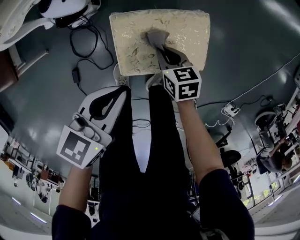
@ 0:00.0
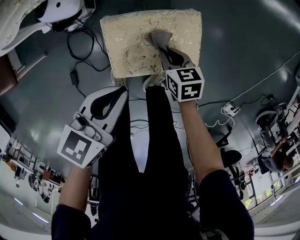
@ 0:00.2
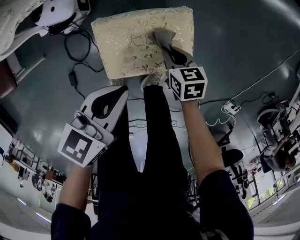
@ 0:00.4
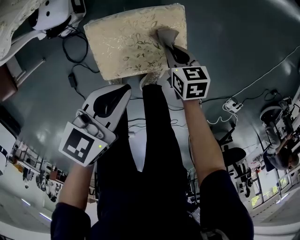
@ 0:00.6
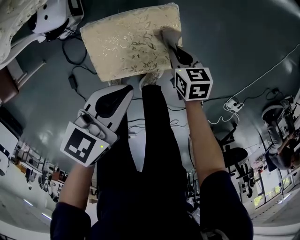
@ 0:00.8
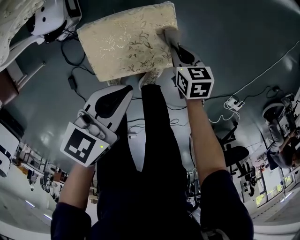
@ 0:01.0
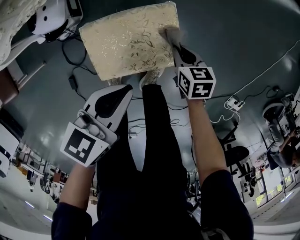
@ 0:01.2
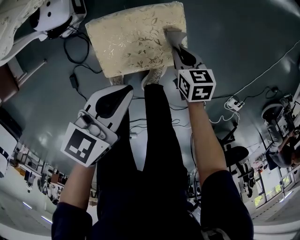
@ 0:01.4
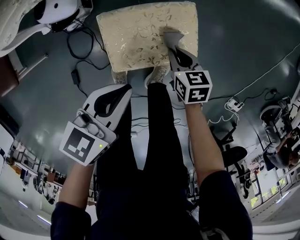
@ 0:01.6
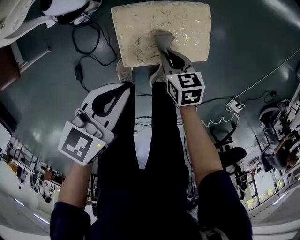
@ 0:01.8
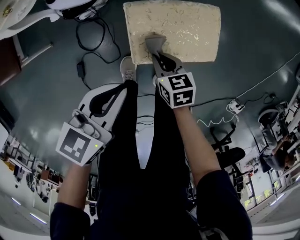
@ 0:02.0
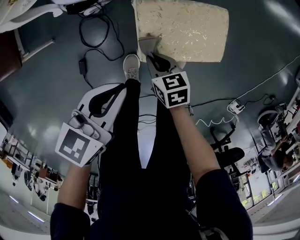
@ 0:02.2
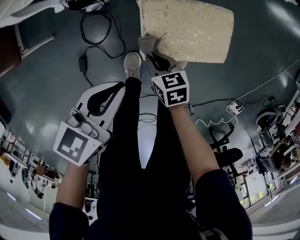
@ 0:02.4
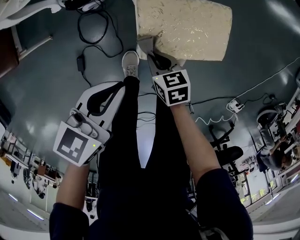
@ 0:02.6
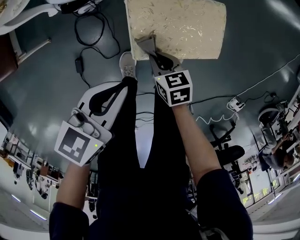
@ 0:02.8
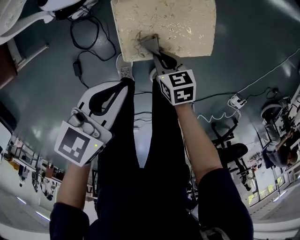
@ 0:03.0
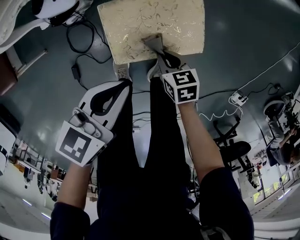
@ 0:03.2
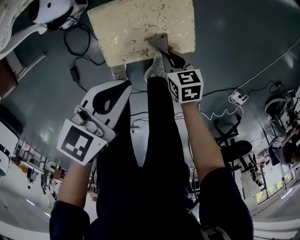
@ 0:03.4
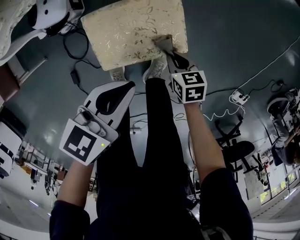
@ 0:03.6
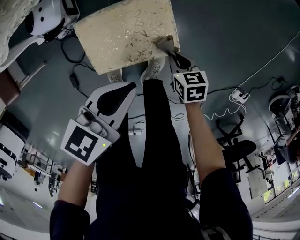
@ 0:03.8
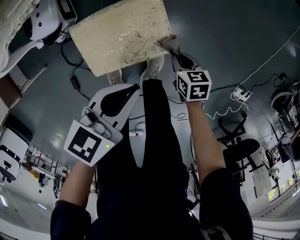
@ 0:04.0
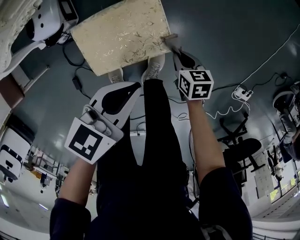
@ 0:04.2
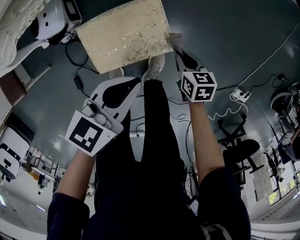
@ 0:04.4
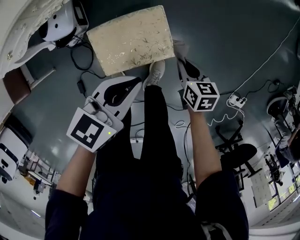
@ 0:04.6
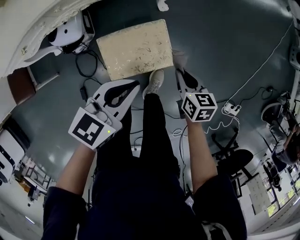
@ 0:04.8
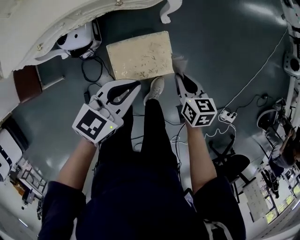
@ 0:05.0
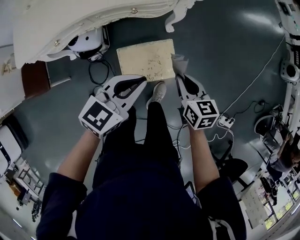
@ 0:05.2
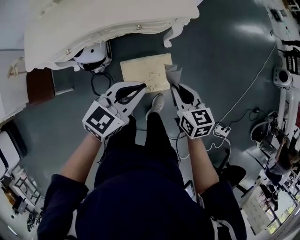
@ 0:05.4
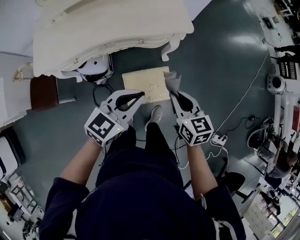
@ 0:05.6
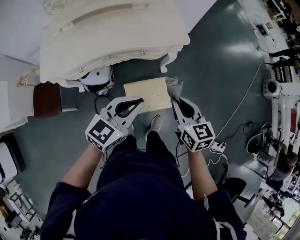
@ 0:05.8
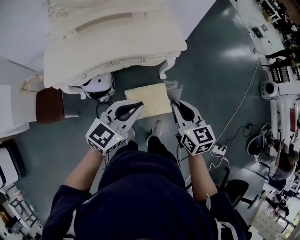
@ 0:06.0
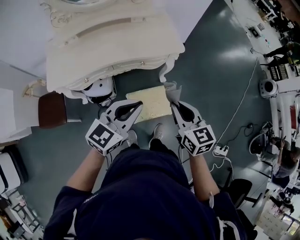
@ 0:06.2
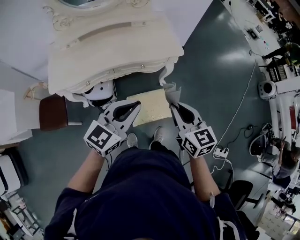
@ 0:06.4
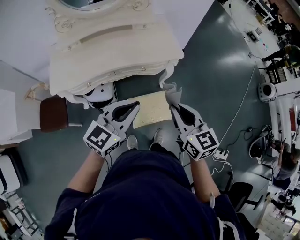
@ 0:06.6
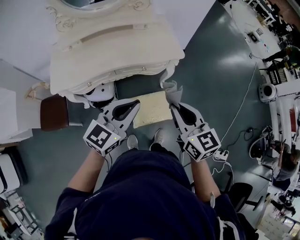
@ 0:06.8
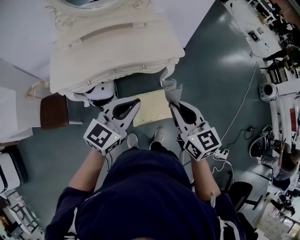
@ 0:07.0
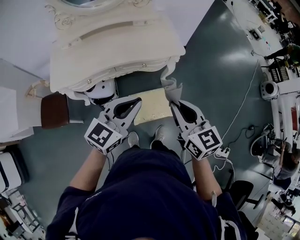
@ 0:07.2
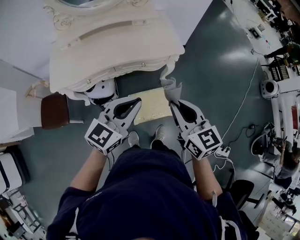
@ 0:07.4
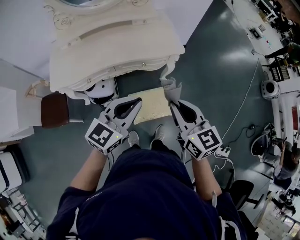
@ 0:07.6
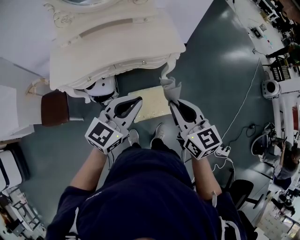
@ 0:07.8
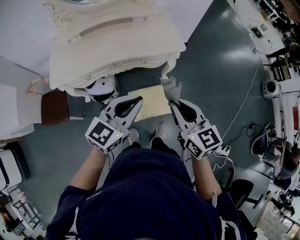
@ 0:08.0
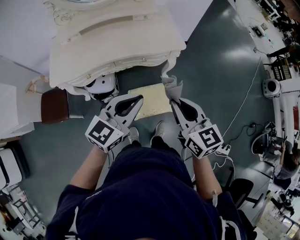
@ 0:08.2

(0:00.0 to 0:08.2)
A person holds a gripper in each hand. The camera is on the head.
0:00.0 - 0:01.6: The right gripper goes roughly 10 cm to the right; the left gripper goes some 5 cm to the right.
0:01.6 - 0:03.2: The right gripper is displaced backward by approximately 5 cm, and reaches about 20 cm to the left, then returns, while the left gripper moves some 15 cm to the left and comes back.
0:03.2 - 0:05.0: The left gripper goes about 20 cm upward and to the right, while the right gripper moves upward and to the right, about 30 cm, and rotates about 20 degrees.
0:05.0 - 0:06.6: Both grippers travel together upward, approximately 35 cm. The right gripper changes its angle by about 30 degrees. Meanwhile the left gripper rotates about 30 degrees.
0:06.6 - 0:08.2: The grippers stay close to where they were, moving slightly.

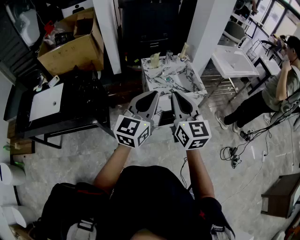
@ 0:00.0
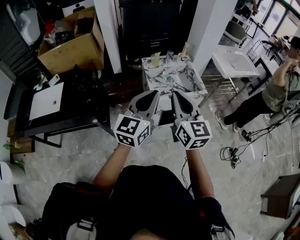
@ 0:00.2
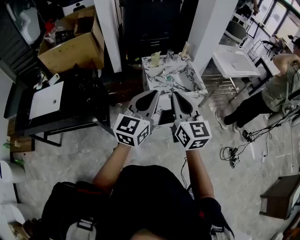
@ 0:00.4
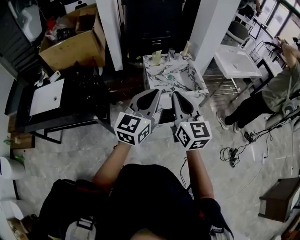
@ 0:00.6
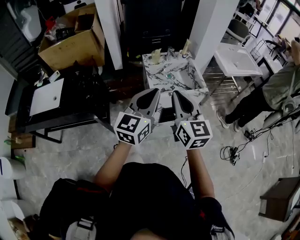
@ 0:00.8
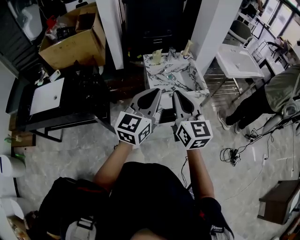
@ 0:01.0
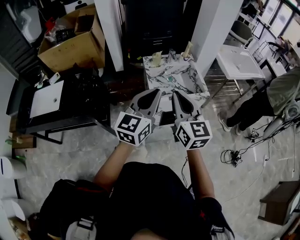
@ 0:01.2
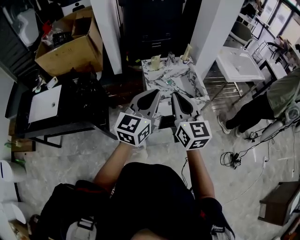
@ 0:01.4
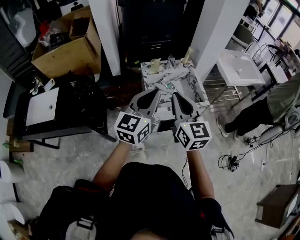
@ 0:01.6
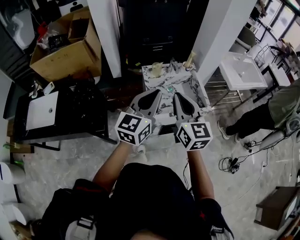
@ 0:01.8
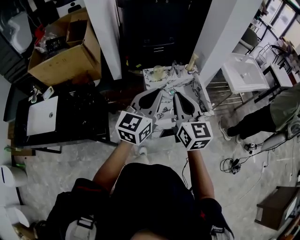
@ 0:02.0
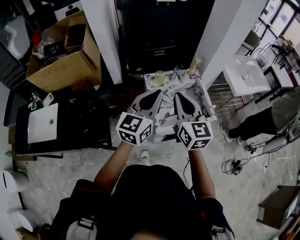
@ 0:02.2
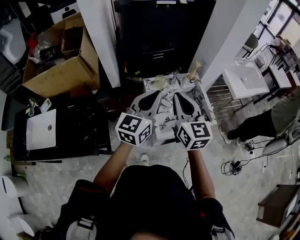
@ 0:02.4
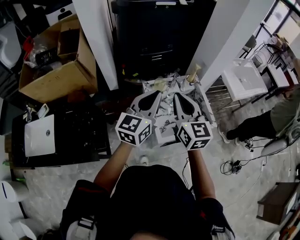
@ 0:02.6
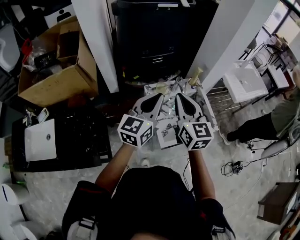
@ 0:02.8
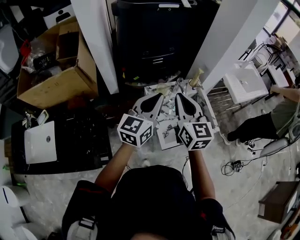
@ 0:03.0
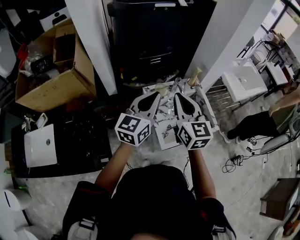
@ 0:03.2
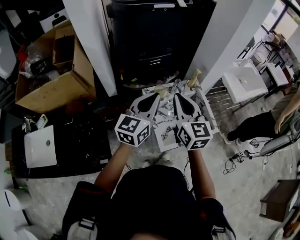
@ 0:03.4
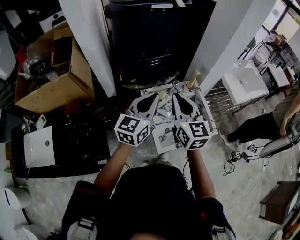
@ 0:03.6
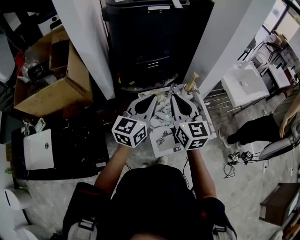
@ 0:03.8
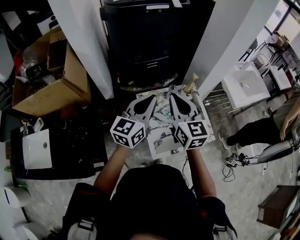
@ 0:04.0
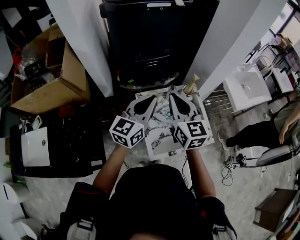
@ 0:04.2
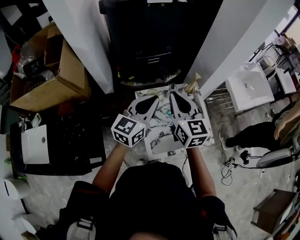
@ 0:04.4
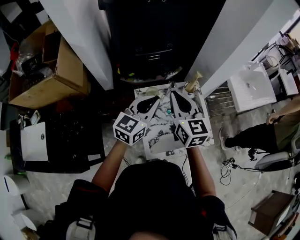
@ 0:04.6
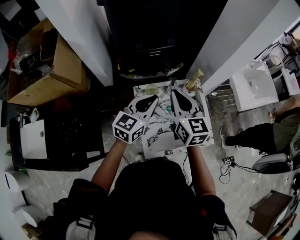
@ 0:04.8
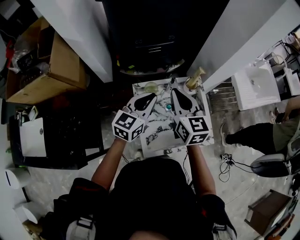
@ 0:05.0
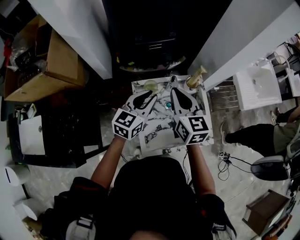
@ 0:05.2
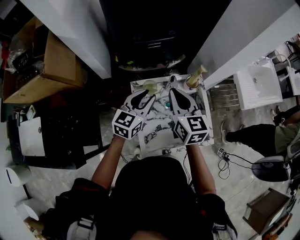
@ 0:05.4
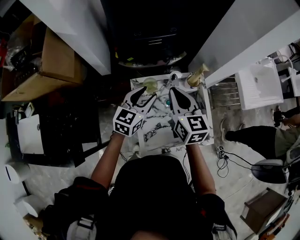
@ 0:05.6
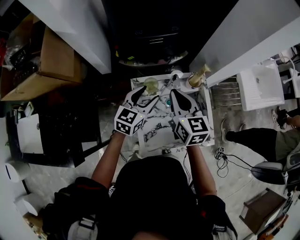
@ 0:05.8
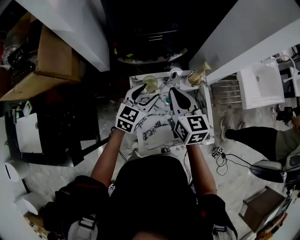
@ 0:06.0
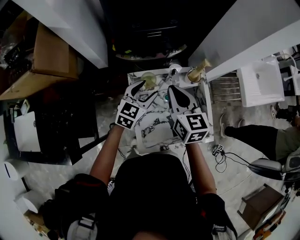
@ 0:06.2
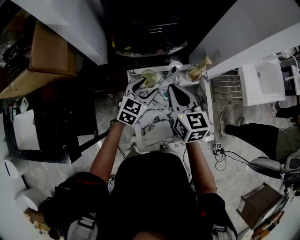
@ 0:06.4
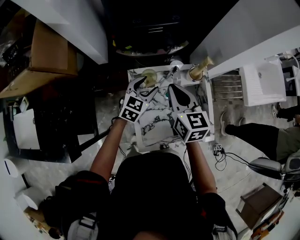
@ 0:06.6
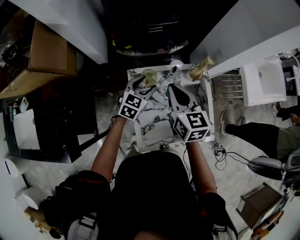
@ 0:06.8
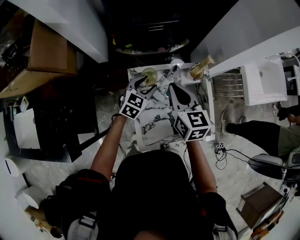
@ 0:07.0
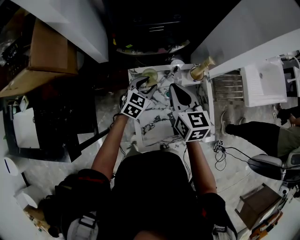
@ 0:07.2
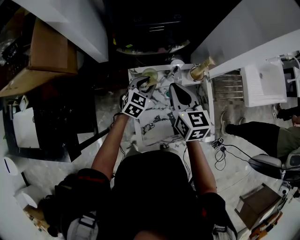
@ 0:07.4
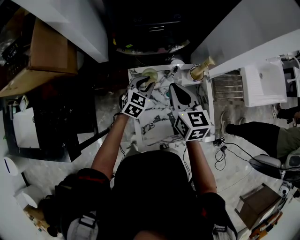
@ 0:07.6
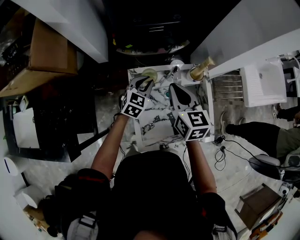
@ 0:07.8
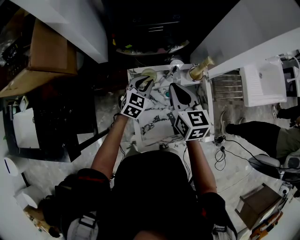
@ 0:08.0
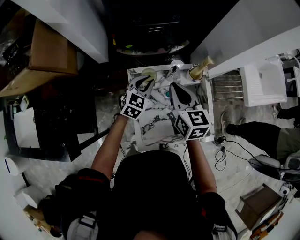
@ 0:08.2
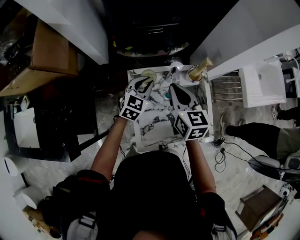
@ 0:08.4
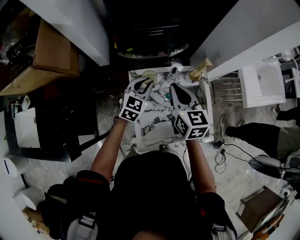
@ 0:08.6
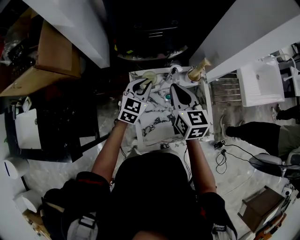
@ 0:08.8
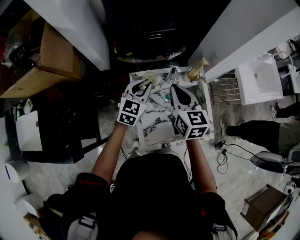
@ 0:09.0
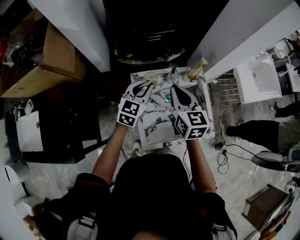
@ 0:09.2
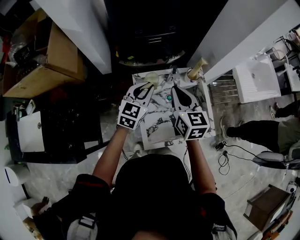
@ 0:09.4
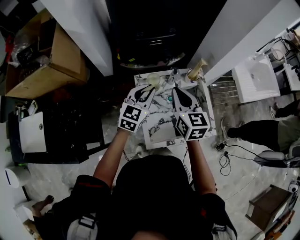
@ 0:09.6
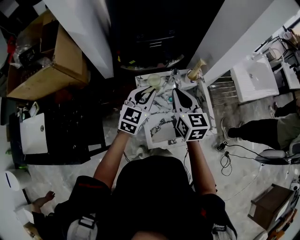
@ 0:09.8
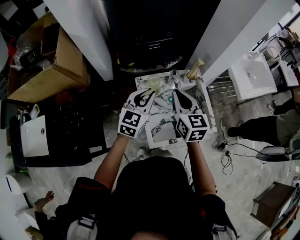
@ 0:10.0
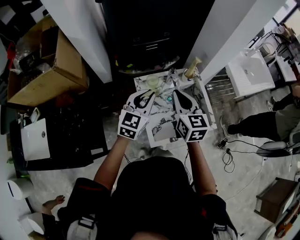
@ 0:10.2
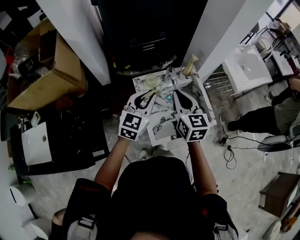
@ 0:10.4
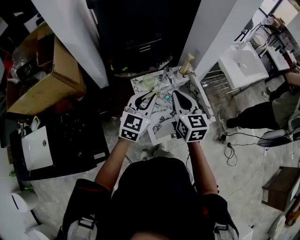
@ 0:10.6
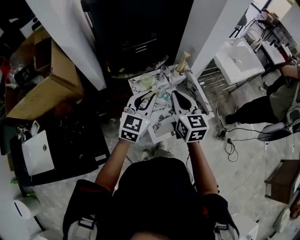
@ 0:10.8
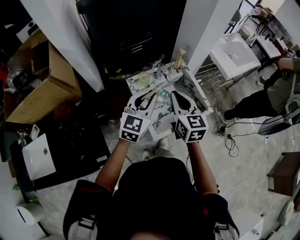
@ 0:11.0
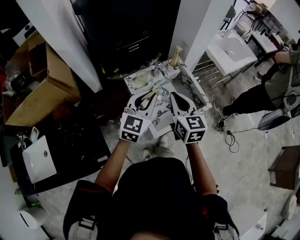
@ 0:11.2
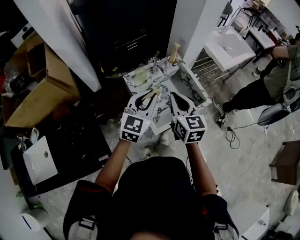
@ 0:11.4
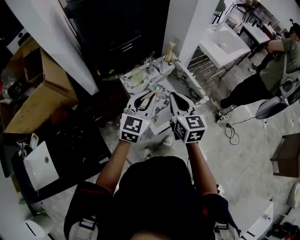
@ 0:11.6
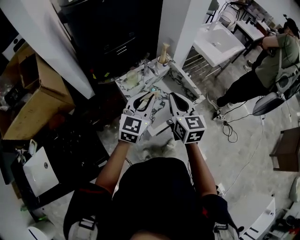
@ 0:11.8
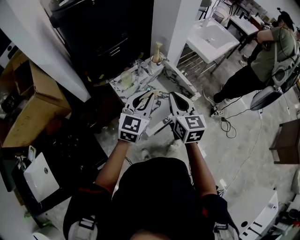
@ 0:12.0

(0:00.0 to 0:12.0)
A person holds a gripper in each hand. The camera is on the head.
0:00.0 - 0:01.6: Both grippers move forward, about 10 cm.
0:01.6 - 0:03.0: Both grippers travel together forward and to the left, some 25 cm.
0:03.0 - 0:04.4: The right gripper goes roughly 10 cm forward, while the left gripper heads forward and to the right, covering roughly 10 cm.
0:04.4 - 0:06.0: The two grippers go roughly 15 cm downward and forward. The left gripper opens up.
0:06.0 - 0:07.6: The left gripper heads downward, covering approximately 10 cm, and closes its fingers.
0:07.6 - 0:09.0: The left gripper goes some 10 cm upward.
0:09.0 - 0:10.4: Both grippers move backward and upward, approximately 15 cm.
0:10.4 - 0:12.0: The left gripper heads to the right and backward, covering about 10 cm. Meanwhile the right gripper travels backward and to the right by roughly 10 cm.

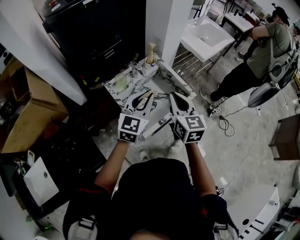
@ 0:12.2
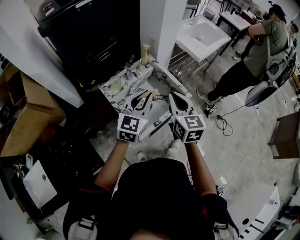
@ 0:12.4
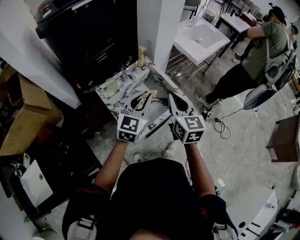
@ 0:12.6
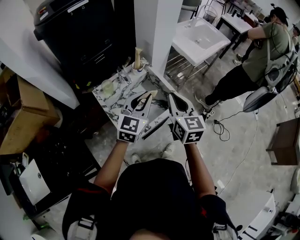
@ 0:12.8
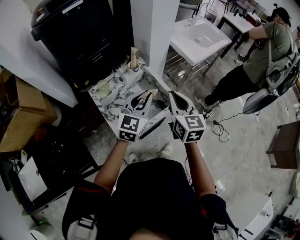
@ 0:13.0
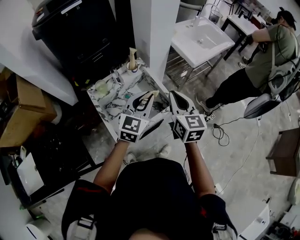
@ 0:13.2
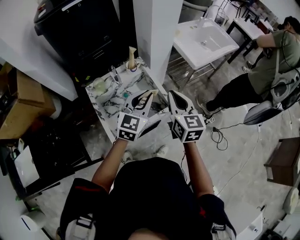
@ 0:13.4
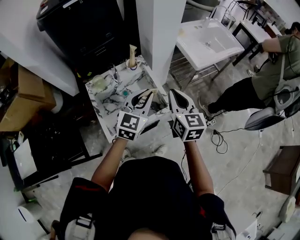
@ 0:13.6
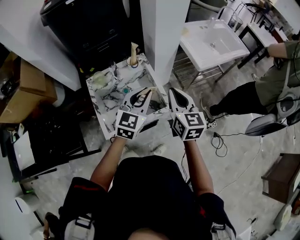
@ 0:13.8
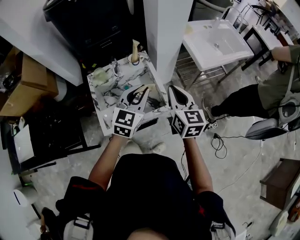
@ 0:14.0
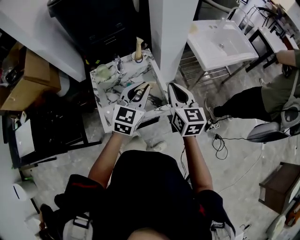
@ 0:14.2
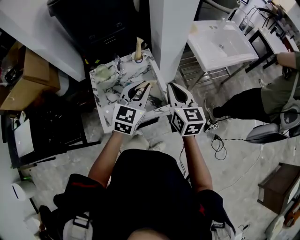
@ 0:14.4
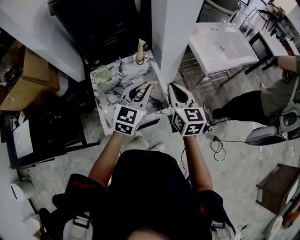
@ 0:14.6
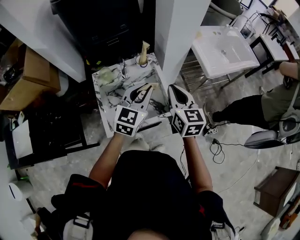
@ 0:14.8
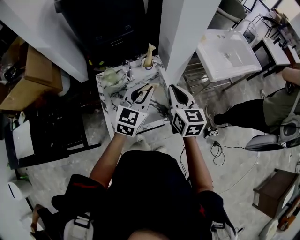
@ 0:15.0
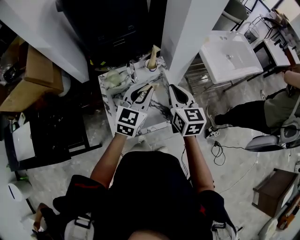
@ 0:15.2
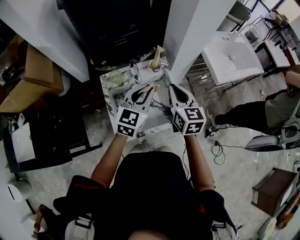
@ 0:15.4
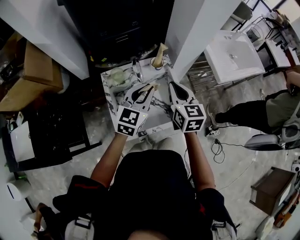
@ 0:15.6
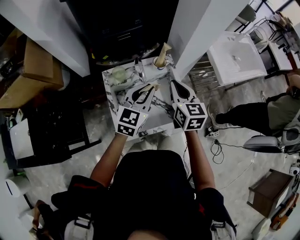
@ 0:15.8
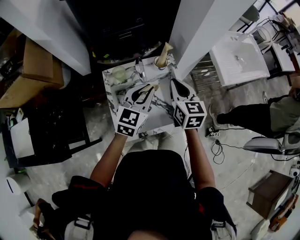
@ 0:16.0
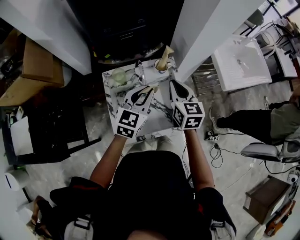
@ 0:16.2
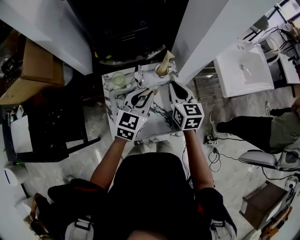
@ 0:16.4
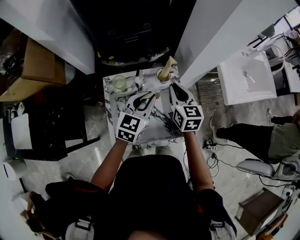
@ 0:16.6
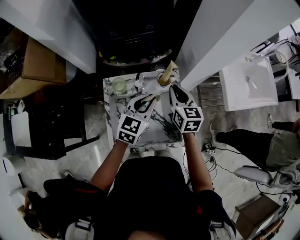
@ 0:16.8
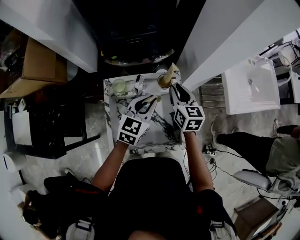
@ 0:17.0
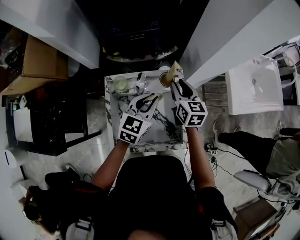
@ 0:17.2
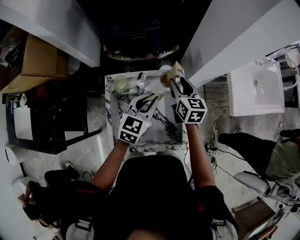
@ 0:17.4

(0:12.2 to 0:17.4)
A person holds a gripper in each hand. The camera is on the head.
0:12.2 - 0:14.0: The two grippers go approximately 20 cm to the right and forward.
0:14.0 - 0:15.6: Both grippers travel together to the left and forward, approximately 15 cm.
0:15.6 - 0:17.4: The right gripper heads forward and downward, covering some 20 cm, and opens up, while the left gripper goes roughly 15 cm forward and downward.
